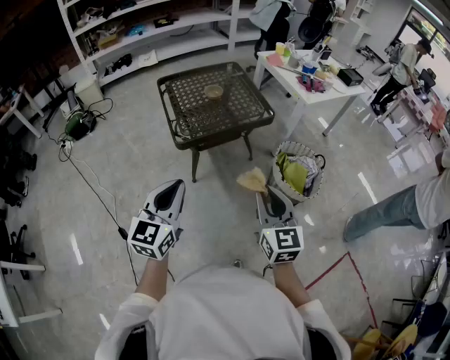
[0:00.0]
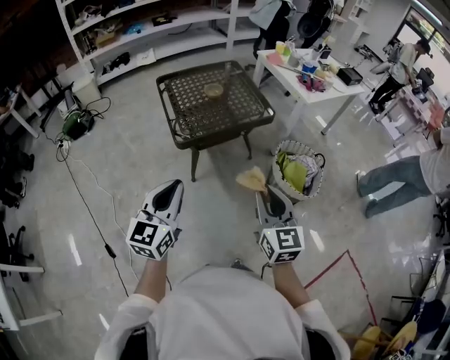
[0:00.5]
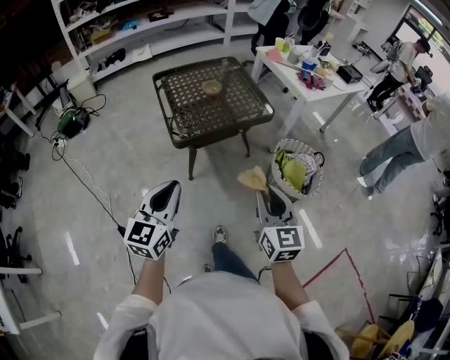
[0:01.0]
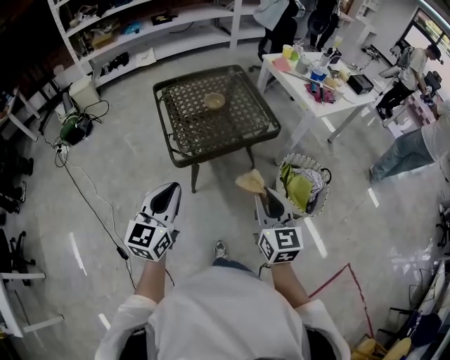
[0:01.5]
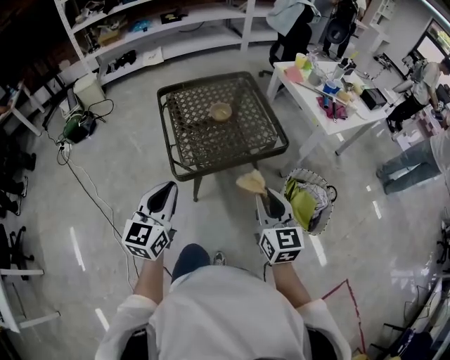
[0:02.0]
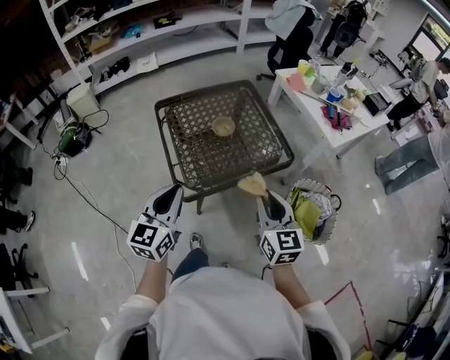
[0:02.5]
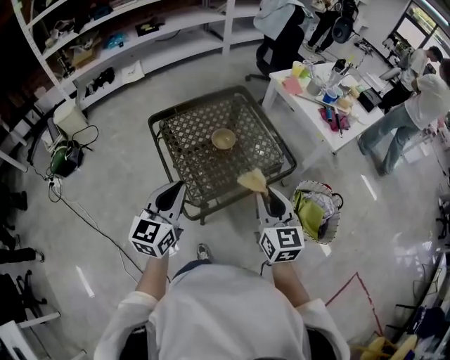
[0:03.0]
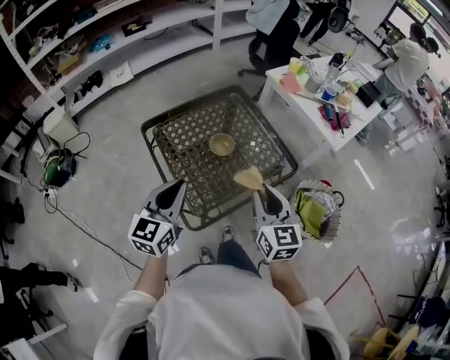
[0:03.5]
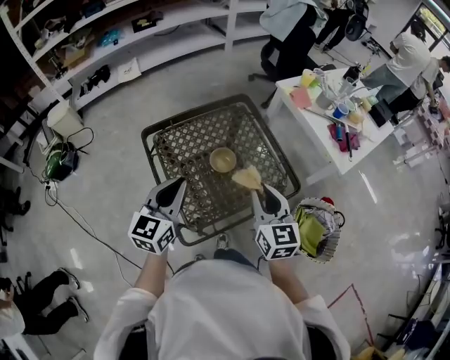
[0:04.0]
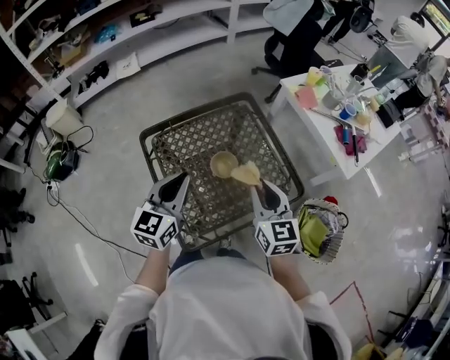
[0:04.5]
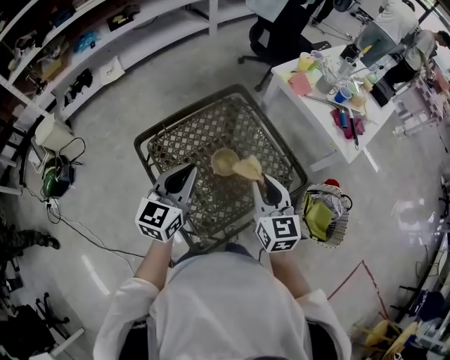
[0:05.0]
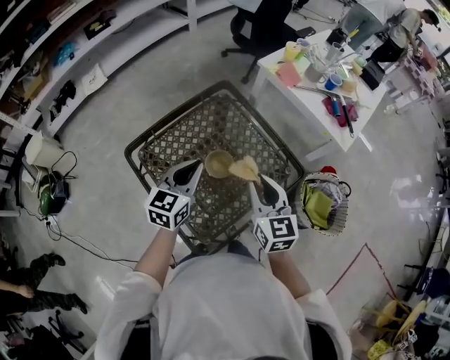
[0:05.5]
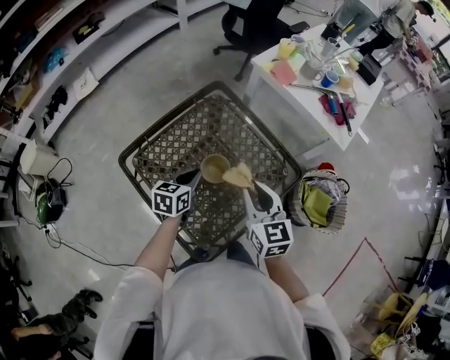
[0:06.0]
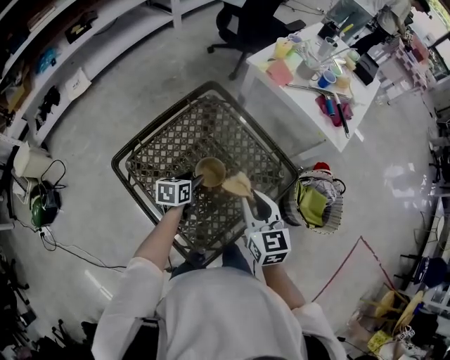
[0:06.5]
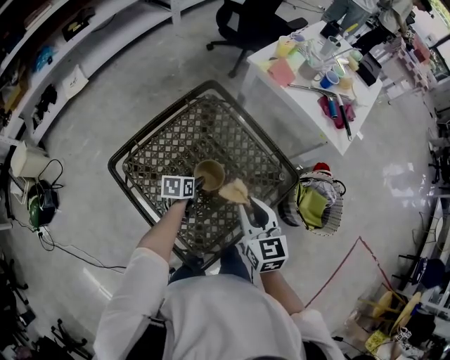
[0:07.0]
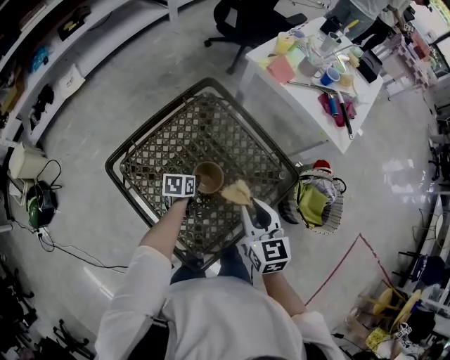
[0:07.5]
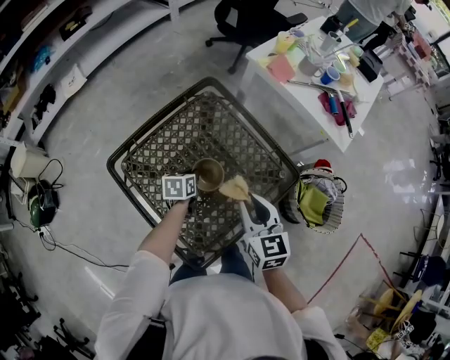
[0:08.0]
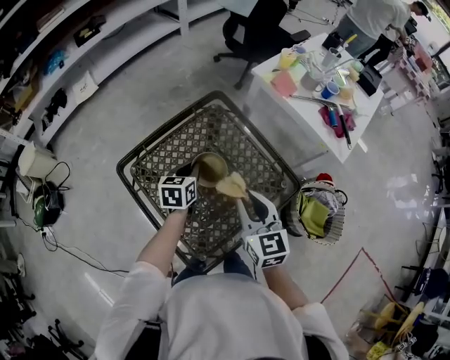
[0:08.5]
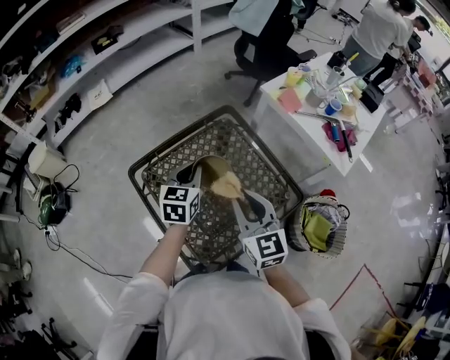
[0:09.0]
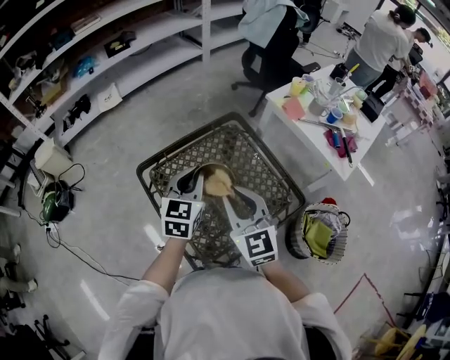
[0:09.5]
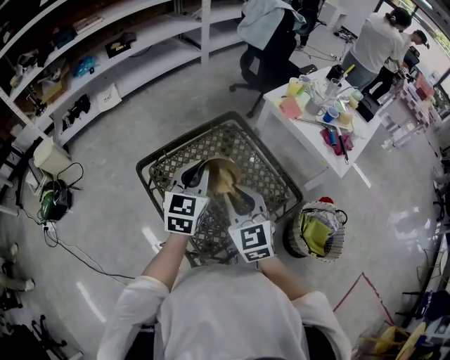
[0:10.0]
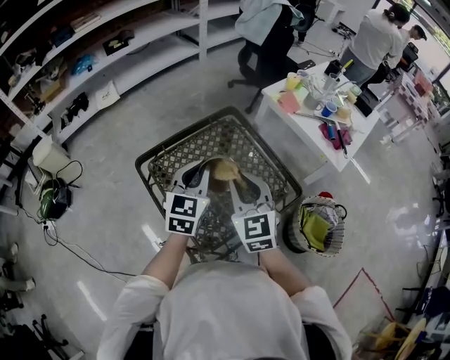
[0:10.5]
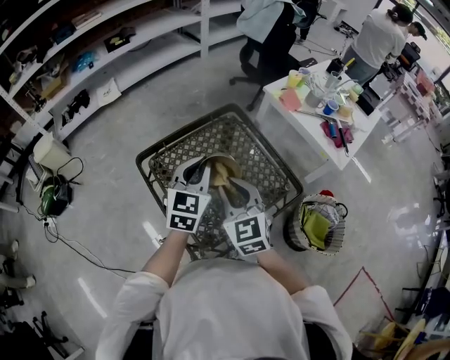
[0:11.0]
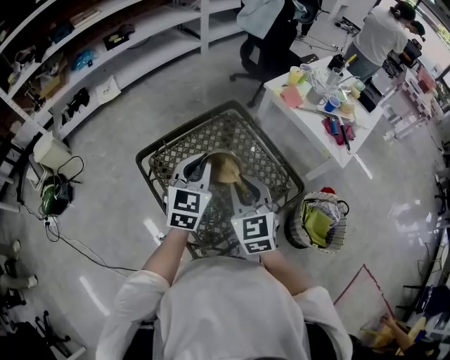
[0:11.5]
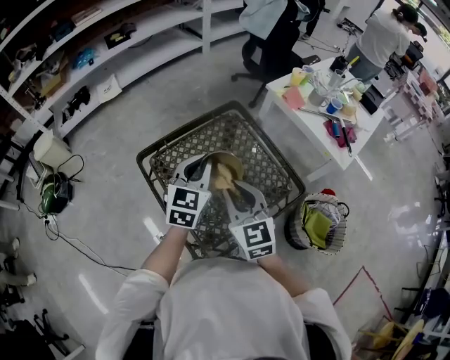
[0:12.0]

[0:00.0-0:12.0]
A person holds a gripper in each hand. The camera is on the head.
0:00.0 to 0:02.0: The two grippers go about 25 cm forward.
0:02.0 to 0:04.0: Both grippers move forward, roughly 30 cm.
0:04.0 to 0:06.0: The left gripper heads downward and forward, covering approximately 25 cm, and swivels about 40 degrees. The right gripper heads forward and downward, covering roughly 10 cm.
0:06.0 to 0:08.0: The left gripper travels downward by about 10 cm, and opens, then closes once more.
0:08.0 to 0:10.0: The left gripper is displaced upward by roughly 35 cm, and points its fingers approximately 30 degrees further upward. Meanwhile the right gripper heads upward and to the left, covering roughly 15 cm, and turns by some 30 degrees.
0:10.0 to 0:12.0: The grippers stay close to where they were, moving slightly.

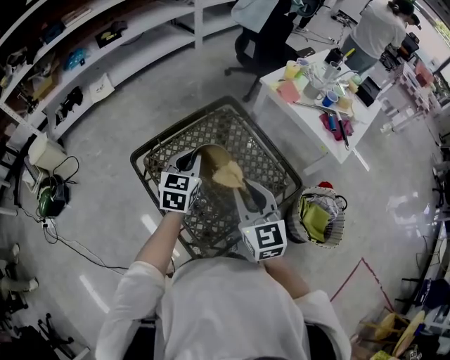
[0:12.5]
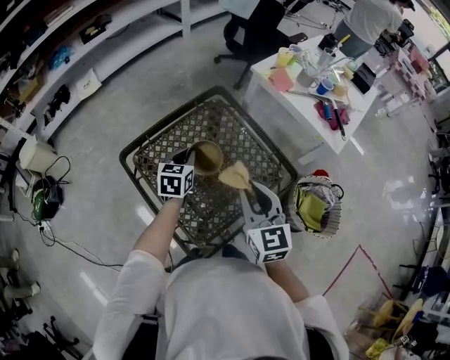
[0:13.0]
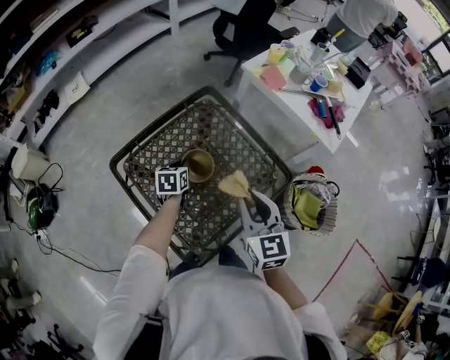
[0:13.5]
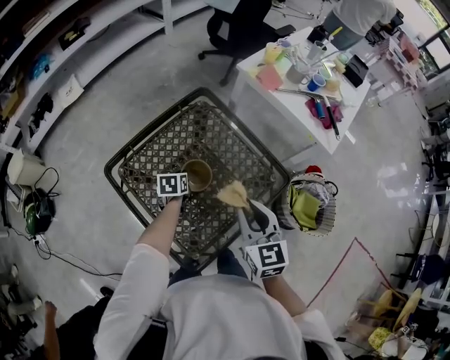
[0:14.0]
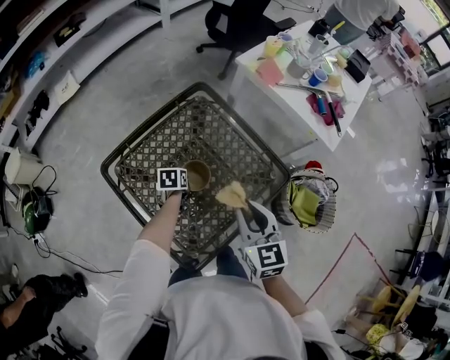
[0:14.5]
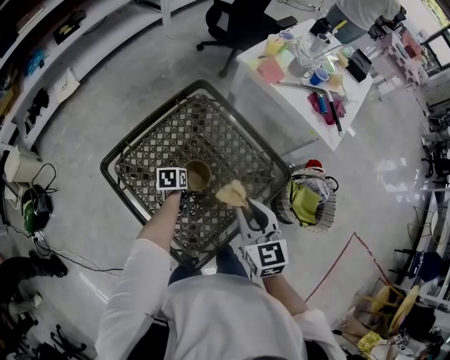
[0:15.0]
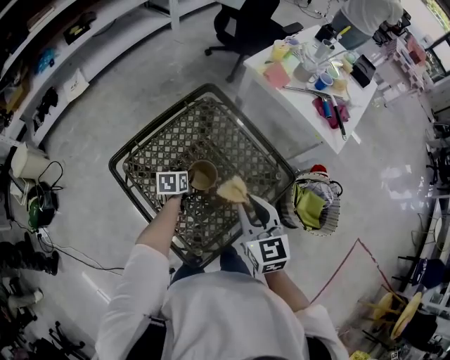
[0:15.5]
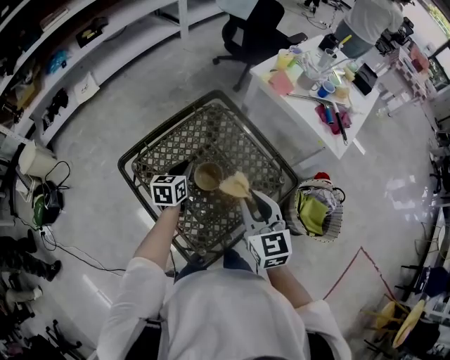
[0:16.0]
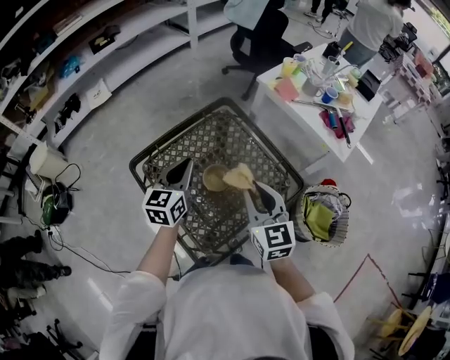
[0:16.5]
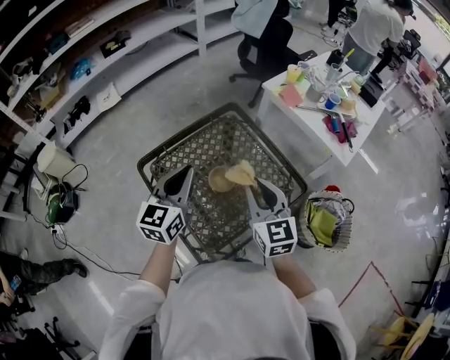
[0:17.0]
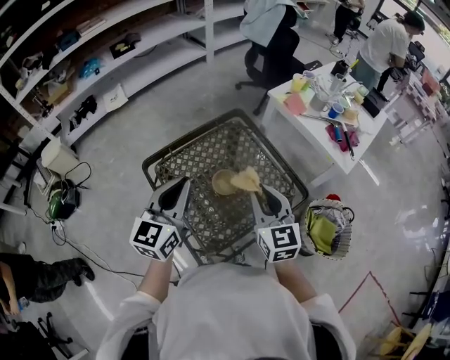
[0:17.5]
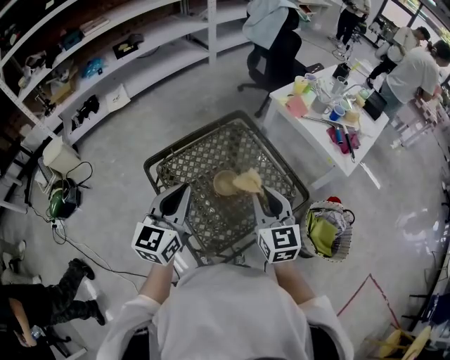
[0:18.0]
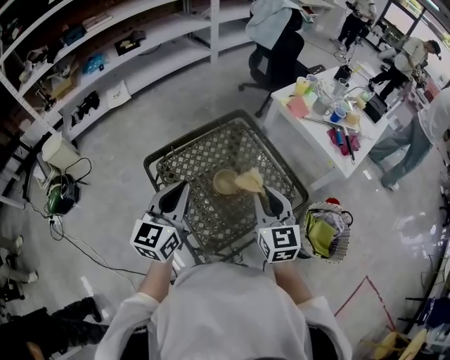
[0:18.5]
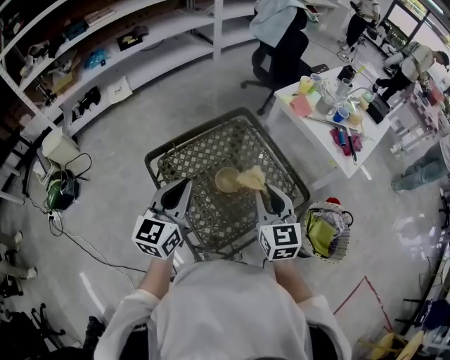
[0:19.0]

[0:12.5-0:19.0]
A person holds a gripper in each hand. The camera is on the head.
0:12.5 to 0:14.5: The left gripper goes about 30 cm downward, and angles its fingers downward, by approximately 40 degrees; the right gripper travels downward and to the right by some 10 cm.
0:14.5 to 0:17.0: The left gripper heads upward, covering about 35 cm, points its fingers roughly 50 degrees further upward, and opens and closes again. Meanwhile the right gripper travels upward by some 10 cm.
0:17.0 to 0:19.0: The left gripper travels backward by roughly 5 cm.

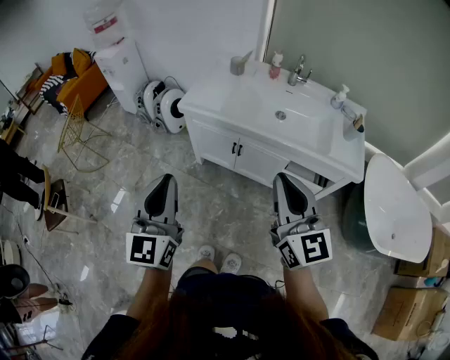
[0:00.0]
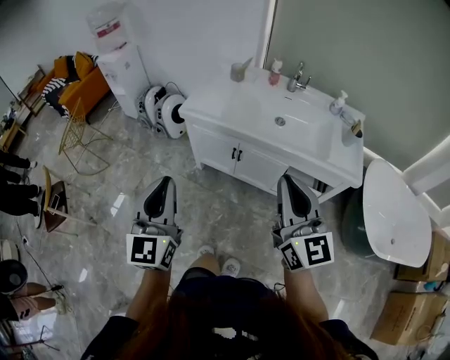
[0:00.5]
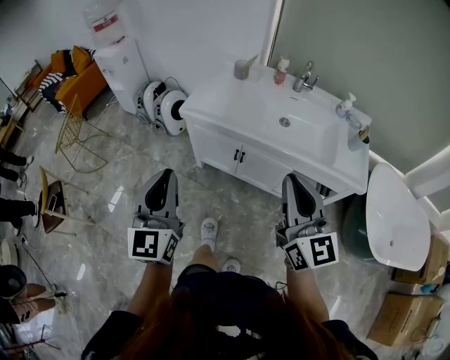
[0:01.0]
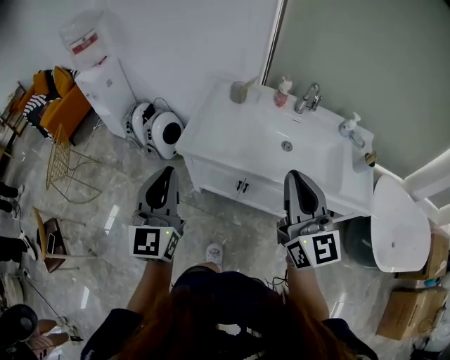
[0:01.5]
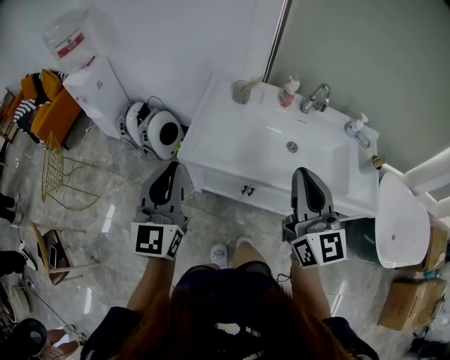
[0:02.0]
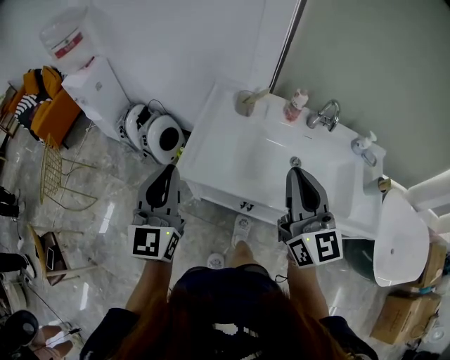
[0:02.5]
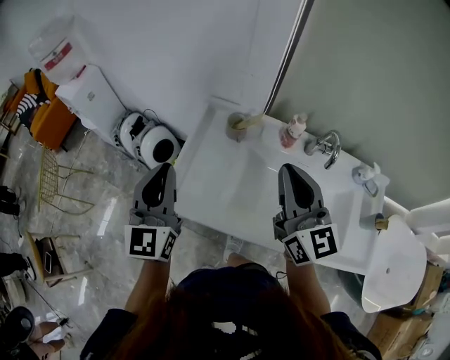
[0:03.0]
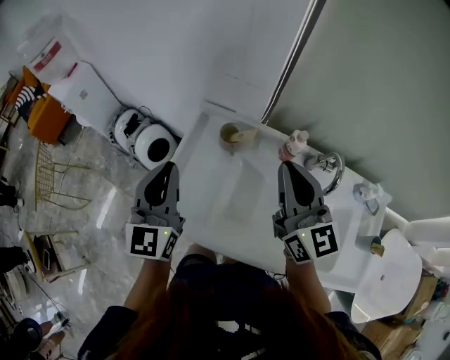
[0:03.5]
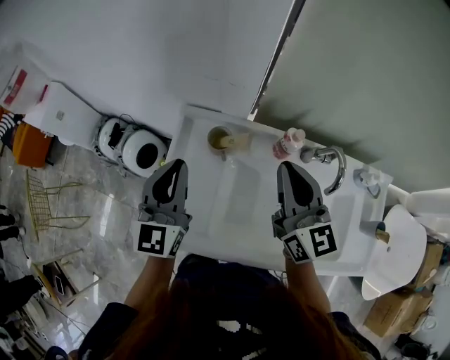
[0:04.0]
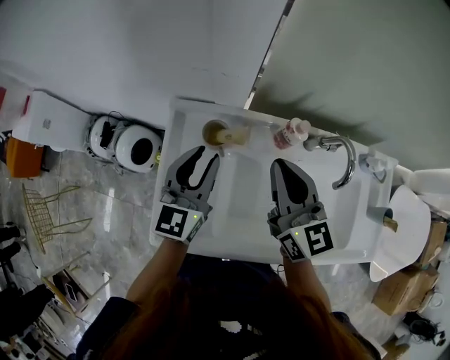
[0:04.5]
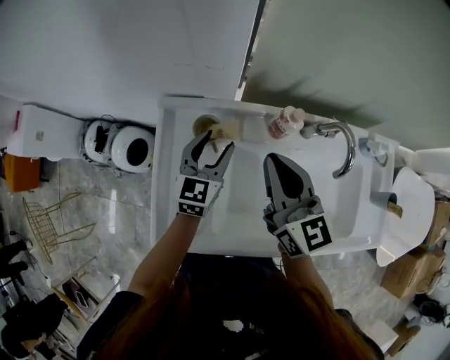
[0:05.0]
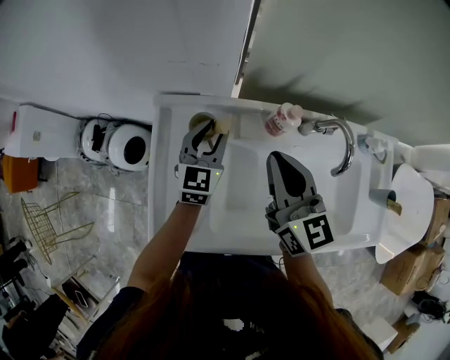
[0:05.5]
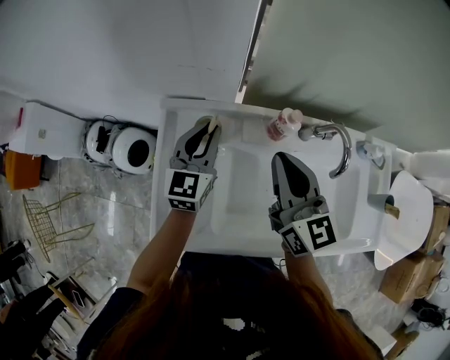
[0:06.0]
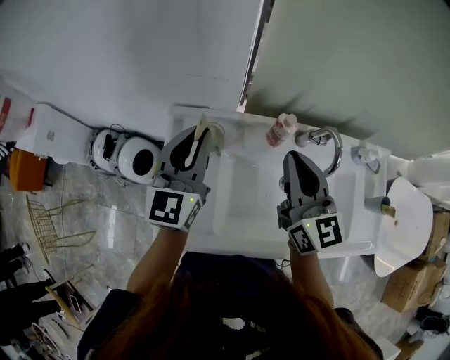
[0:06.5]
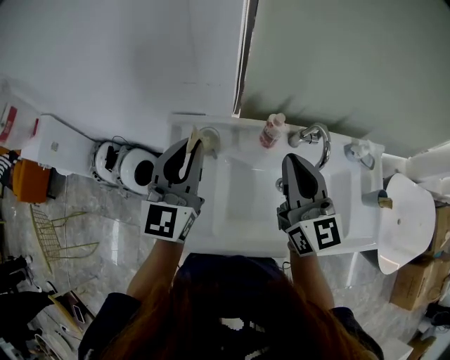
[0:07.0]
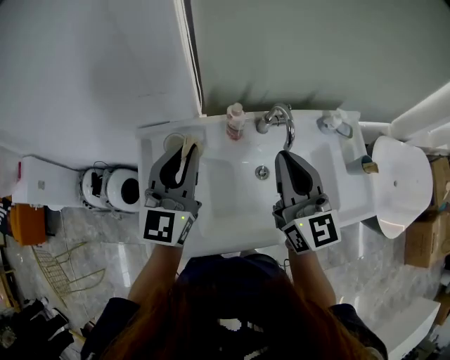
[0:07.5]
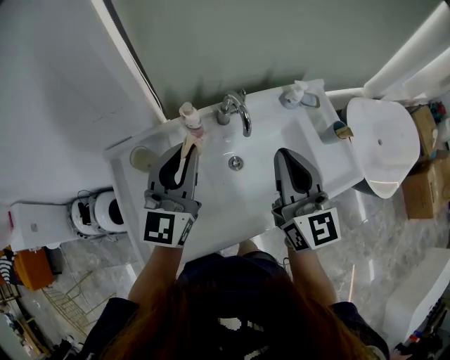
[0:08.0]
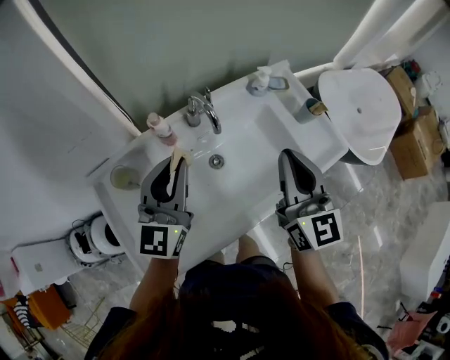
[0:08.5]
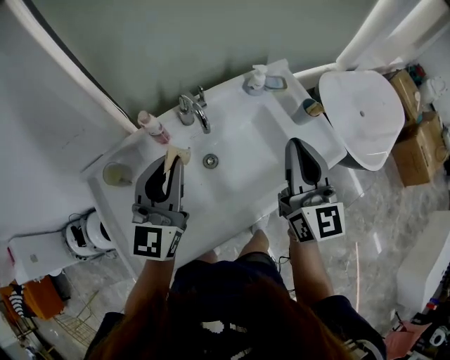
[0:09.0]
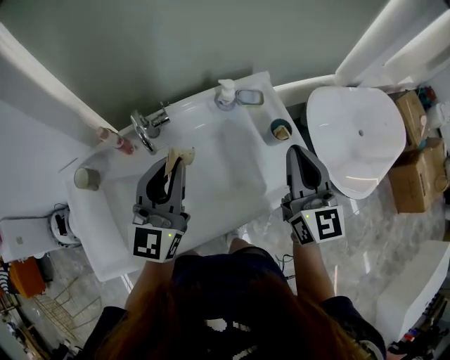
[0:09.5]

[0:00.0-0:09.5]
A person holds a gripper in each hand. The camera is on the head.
0:00.0 to 0:02.0: Both grippers travel together forward, roughly 35 cm.
0:02.0 to 0:04.0: The two grippers travel together, forward, roughly 40 cm.
0:04.0 to 0:05.5: The left gripper shifts approximately 25 cm downward, forward and to the right, rotates about 20 degrees, and opens its fingers, while the right gripper is displaced downward by some 5 cm.
0:05.5 to 0:07.5: The right gripper travels to the right, backward and upward by about 15 cm, while the left gripper heads upward and backward, covering roughly 25 cm, changes its angle by about 20 degrees, and closes its fingers.
0:07.5 to 0:09.5: The right gripper shifts by some 40 cm, and swivels roughly 20 degrees. The left gripper shifts by approximately 35 cm.
